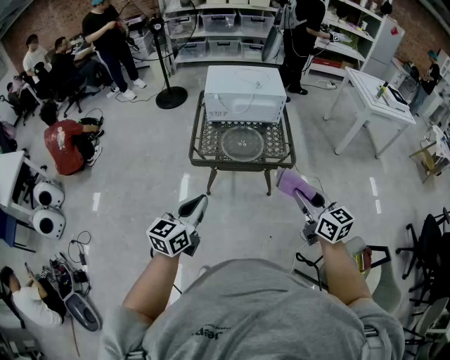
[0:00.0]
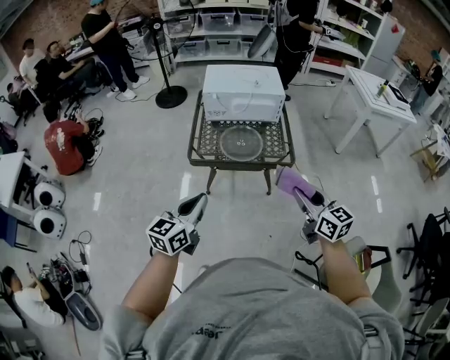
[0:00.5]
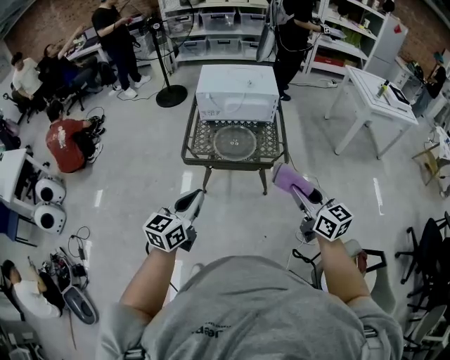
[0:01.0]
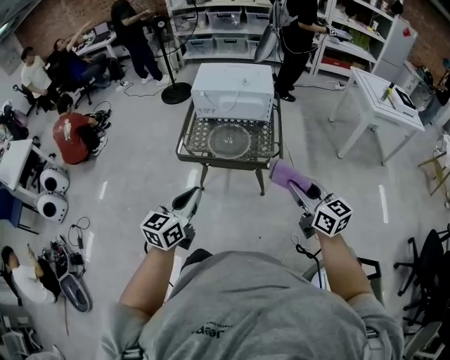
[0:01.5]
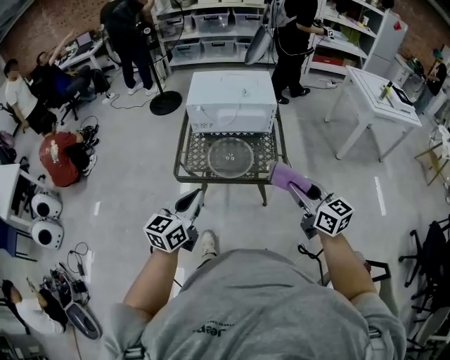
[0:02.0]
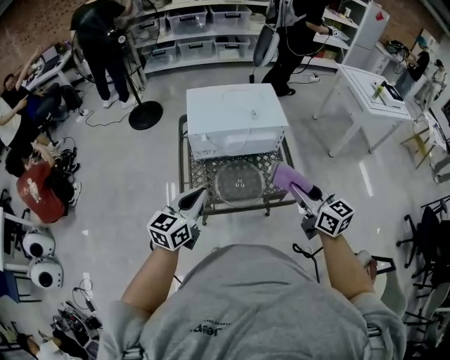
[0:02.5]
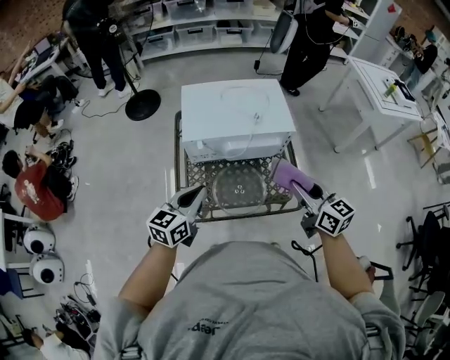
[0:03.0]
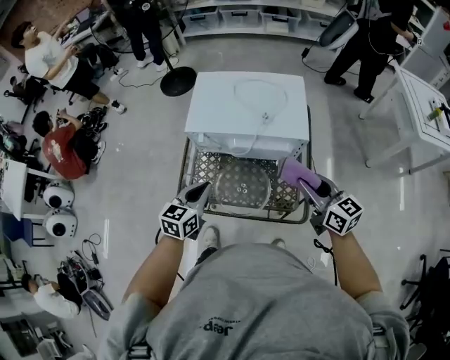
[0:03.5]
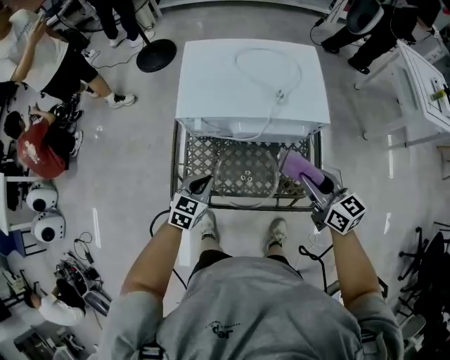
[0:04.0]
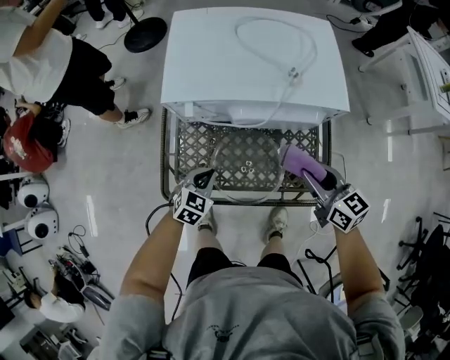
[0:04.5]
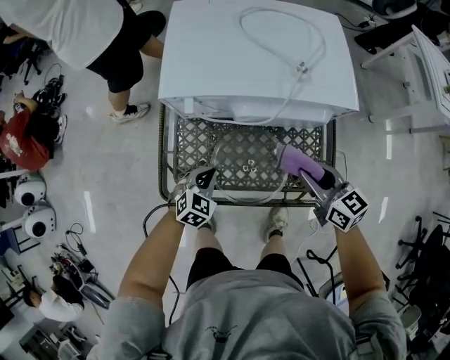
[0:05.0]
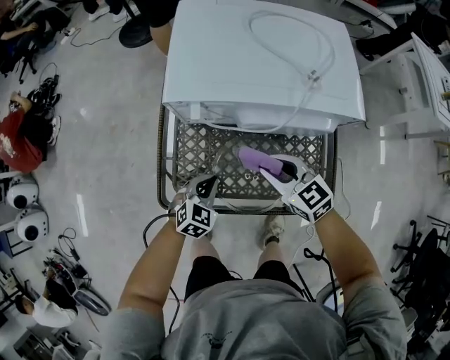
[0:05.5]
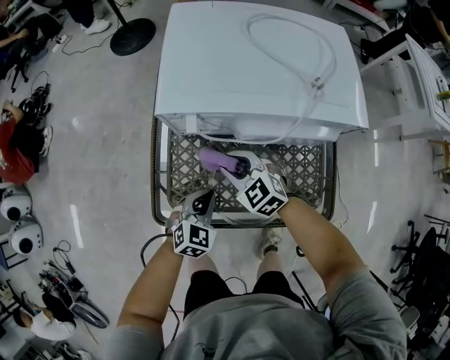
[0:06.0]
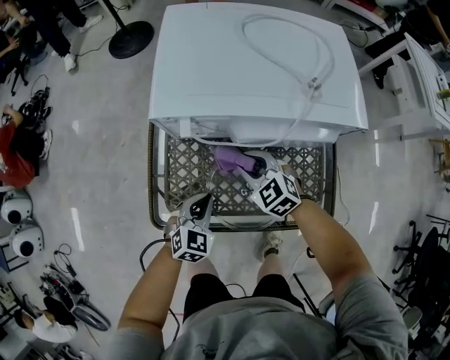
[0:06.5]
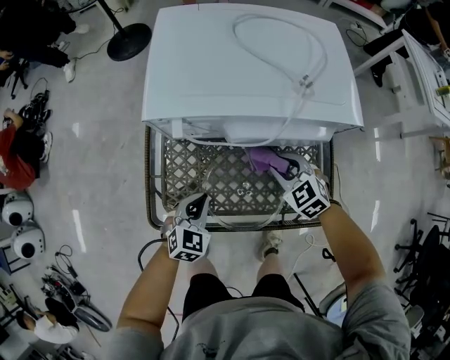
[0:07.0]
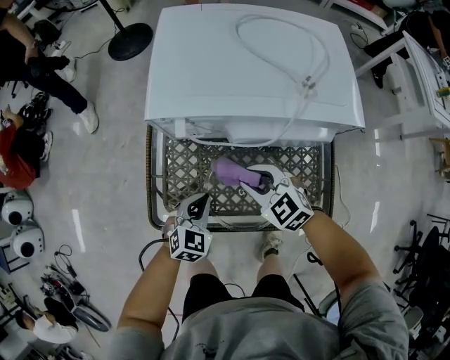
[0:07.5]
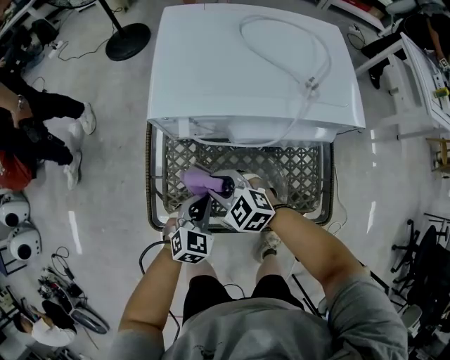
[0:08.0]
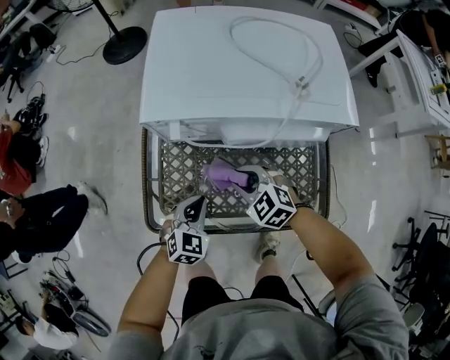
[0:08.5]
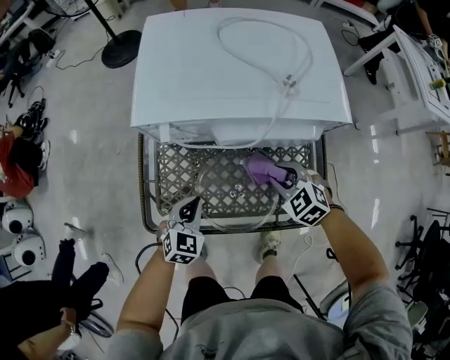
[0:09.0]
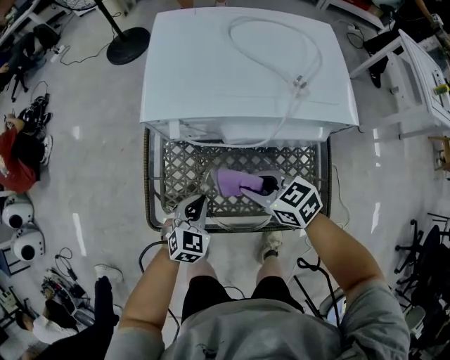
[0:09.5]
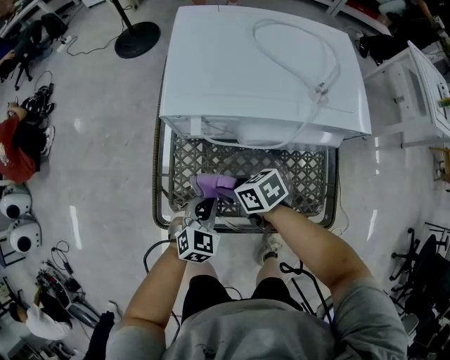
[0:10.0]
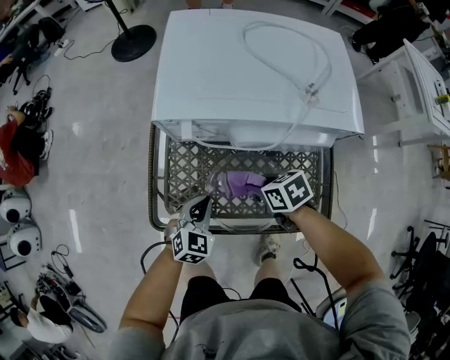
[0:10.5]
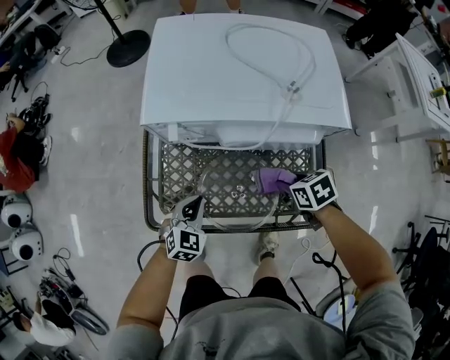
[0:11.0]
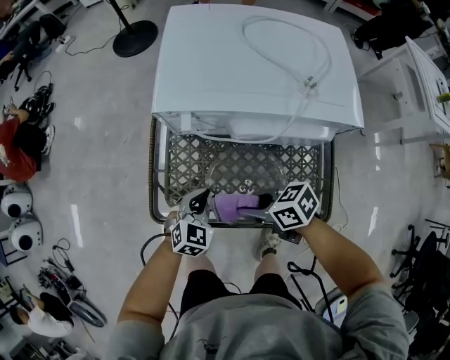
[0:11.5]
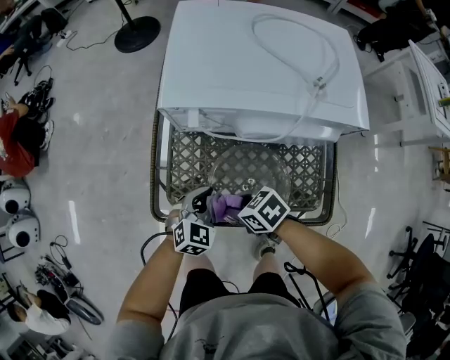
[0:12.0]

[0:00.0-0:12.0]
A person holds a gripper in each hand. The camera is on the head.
0:00.0 to 0:02.0: The two grippers go about 15 cm forward and to the right.
0:02.0 to 0:04.0: Both grippers travel together forward and downward, roughly 40 cm. The left gripper angles its fingers downward, by roughly 30 degrees.
0:04.0 to 0:06.0: The left gripper travels downward by approximately 10 cm. Meanwhile the right gripper moves to the left and downward, approximately 30 cm, and turns by roughly 50 degrees.
0:06.0 to 0:08.0: The right gripper reaches some 15 cm to the right, then returns.
0:08.0 to 0:10.0: The right gripper goes to the right and returns, approximately 20 cm each way, and rolls clockwise, seen from behind, by some 50 degrees.
0:10.0 to 0:12.0: The right gripper travels backward by approximately 10 cm, and reaches roughly 20 cm to the right, then returns.

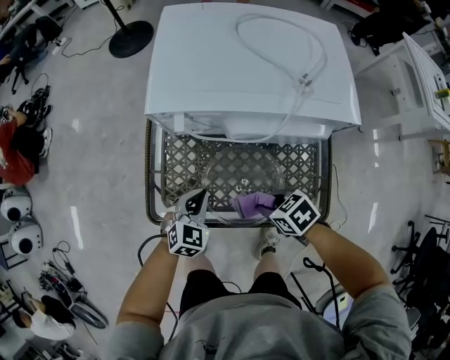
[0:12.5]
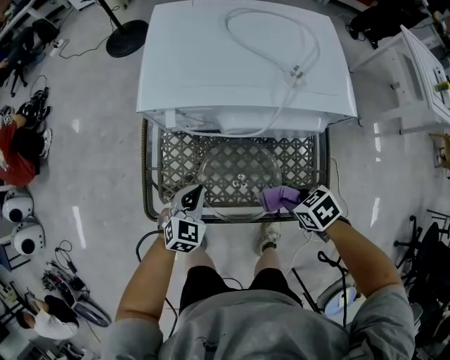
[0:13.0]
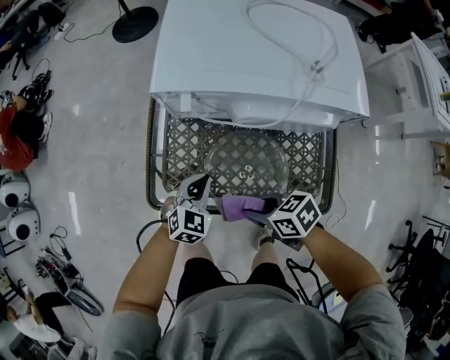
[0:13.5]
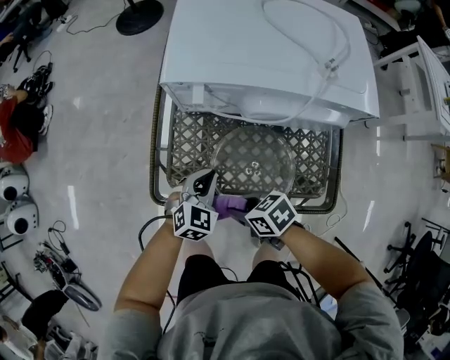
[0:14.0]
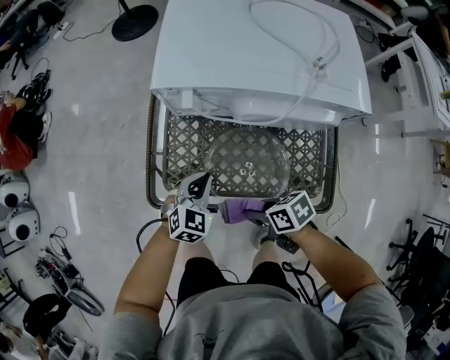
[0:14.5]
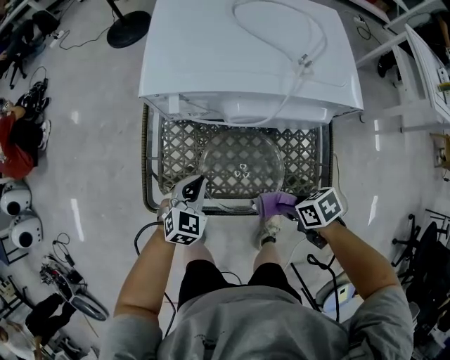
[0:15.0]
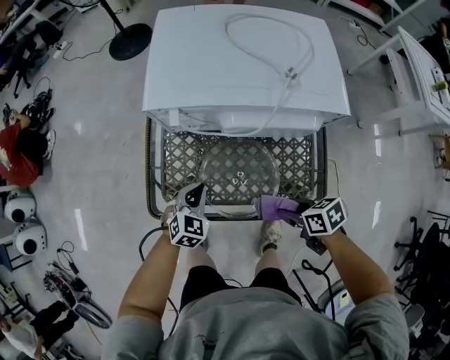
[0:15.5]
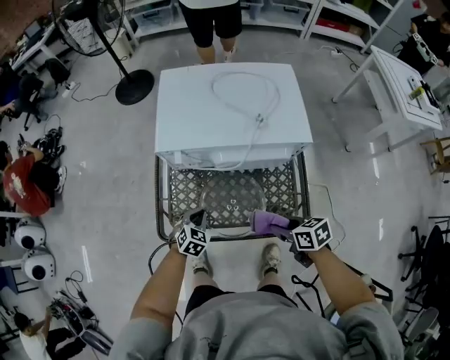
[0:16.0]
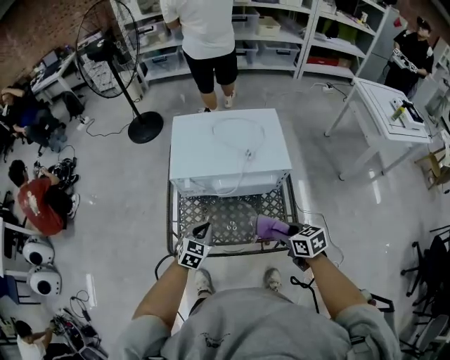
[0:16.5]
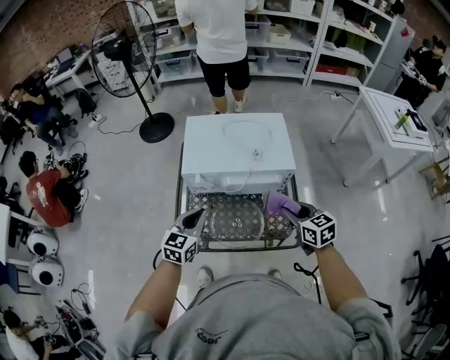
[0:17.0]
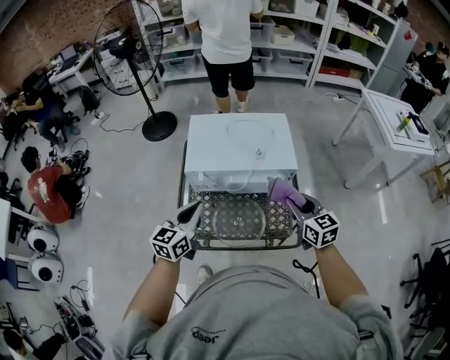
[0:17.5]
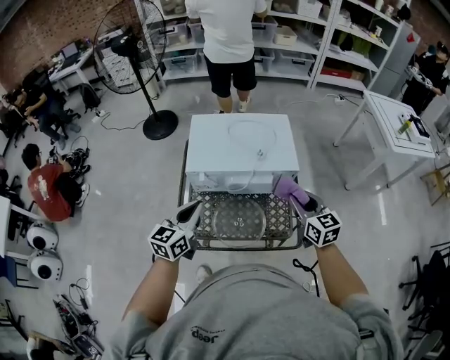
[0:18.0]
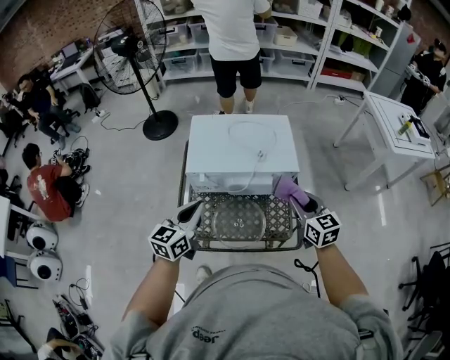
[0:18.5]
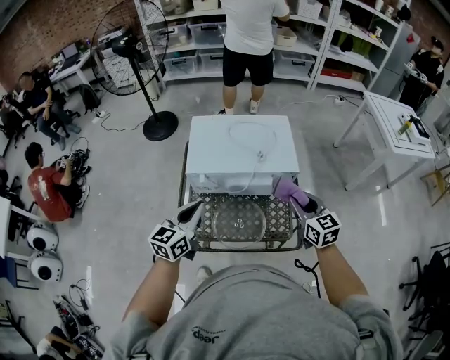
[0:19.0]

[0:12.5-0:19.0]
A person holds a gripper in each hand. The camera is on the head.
0:12.5 to 0:14.5: The right gripper goes left and right, about 20 cm each way, reversing 2 times, and changes its angle by about 20 degrees.
0:14.5 to 0:17.0: The two grippers go some 30 cm upward. The right gripper changes its angle by roughly 50 degrees. Meanwhile the left gripper rotates about 30 degrees.
0:17.0 to 0:19.0: The left gripper moves upward, roughly 5 cm. The right gripper shifts by approximately 5 cm.

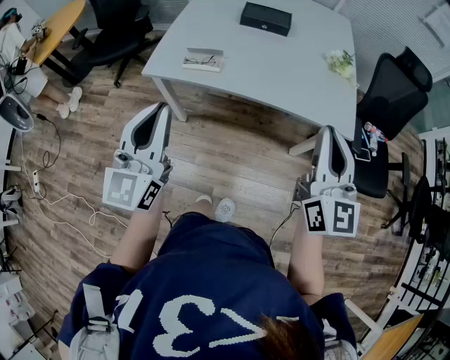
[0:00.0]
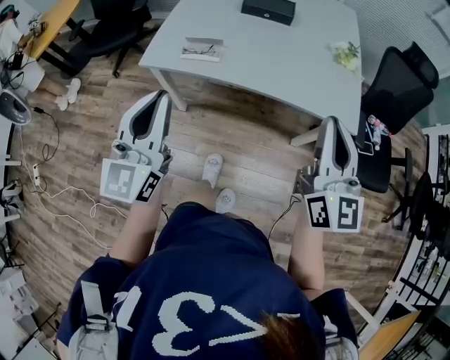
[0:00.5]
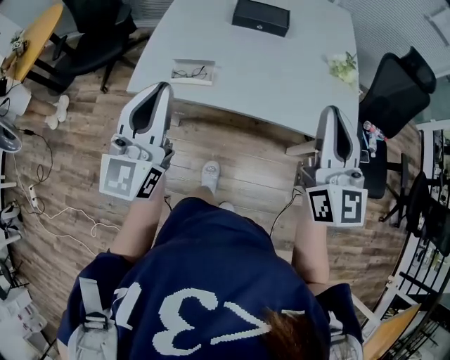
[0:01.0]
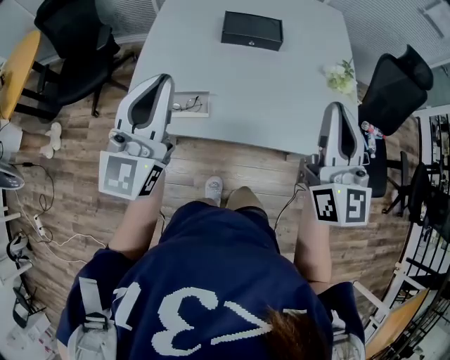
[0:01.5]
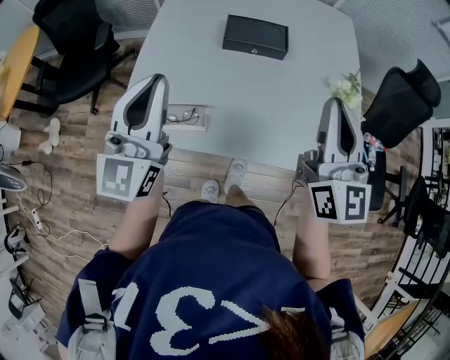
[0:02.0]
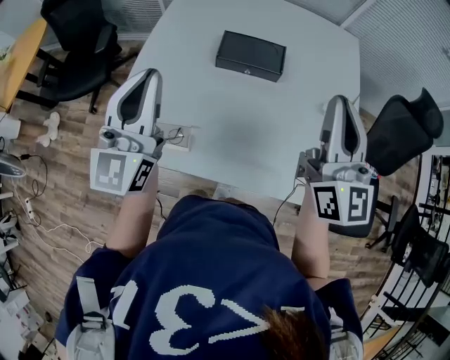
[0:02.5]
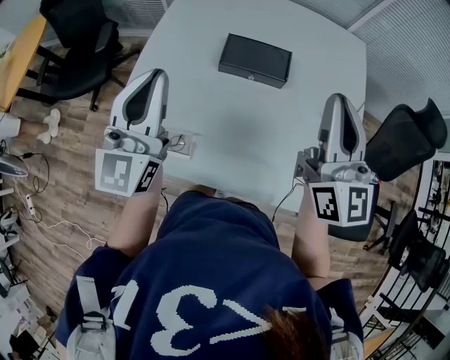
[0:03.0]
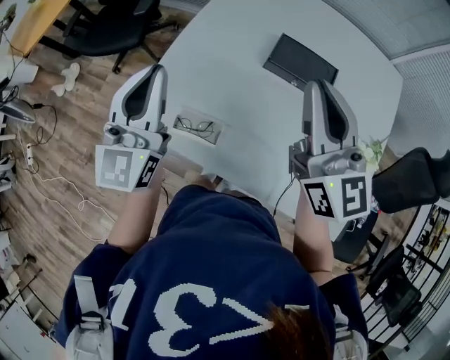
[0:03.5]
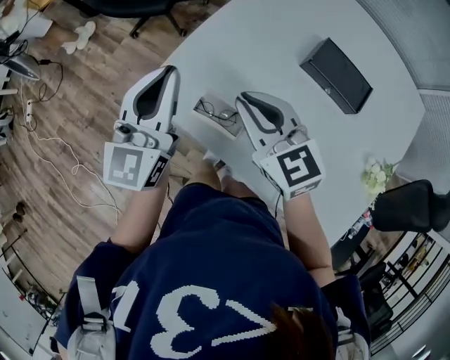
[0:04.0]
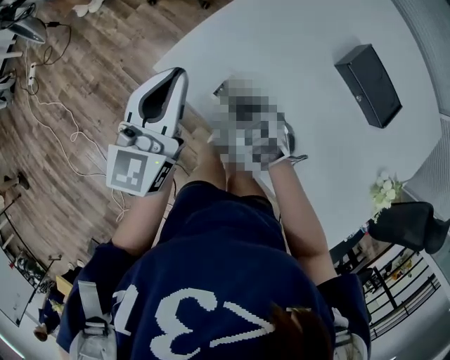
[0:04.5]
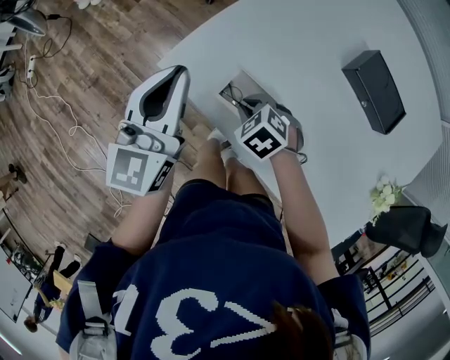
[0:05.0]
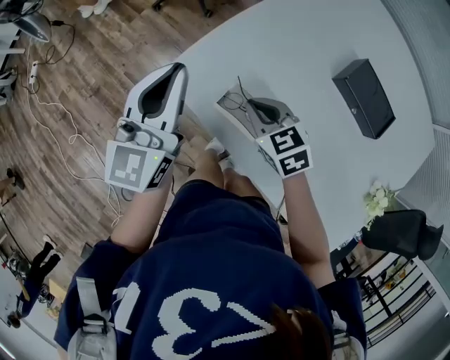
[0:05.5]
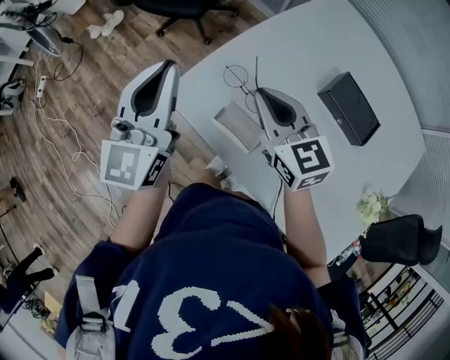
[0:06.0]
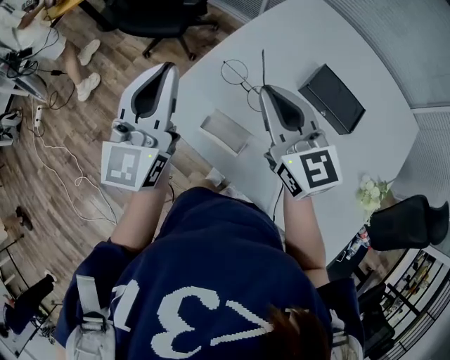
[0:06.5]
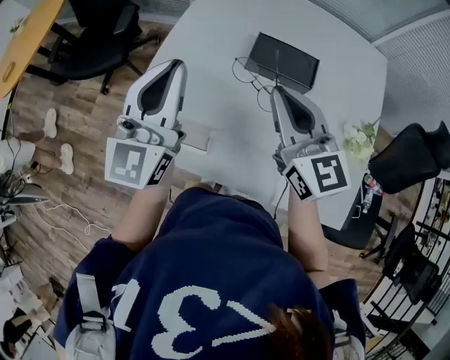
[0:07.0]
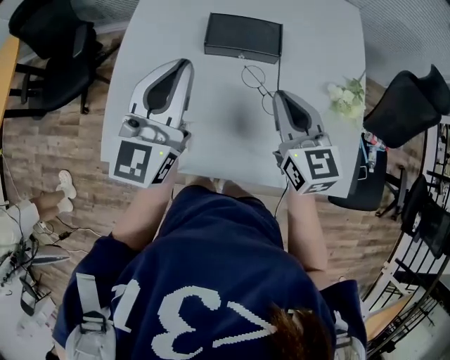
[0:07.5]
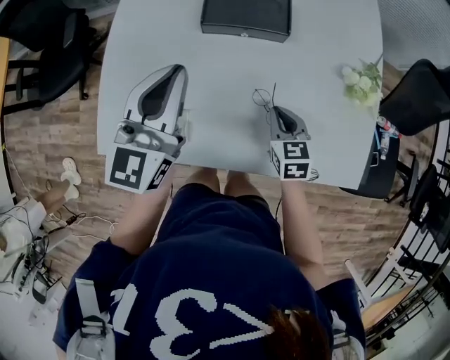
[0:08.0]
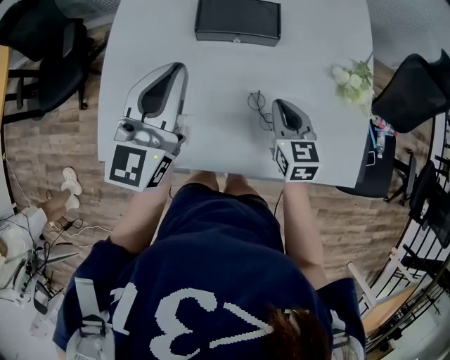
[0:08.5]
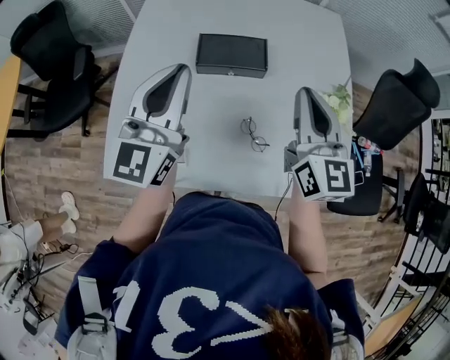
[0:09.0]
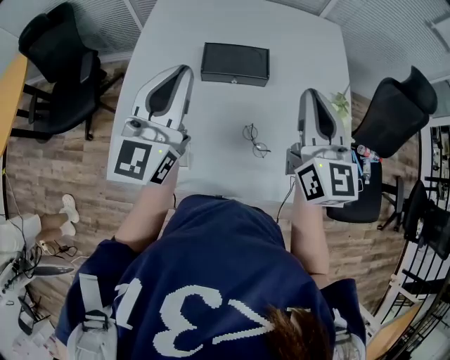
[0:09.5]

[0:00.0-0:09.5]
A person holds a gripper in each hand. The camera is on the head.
0:00.0 to 0:02.0: The grippers both shift forward by about 35 cm.
0:02.0 to 0:04.0: The right gripper changes place by some 35 cm, and points its fingers some 30 degrees further downward. Meanwhile the left gripper ends up some 15 cm from where it was, and changes its angle by about 30 degrees.
0:04.0 to 0:05.5: The right gripper shifts roughly 15 cm downward, and turns by approximately 20 degrees; the left gripper heads to the left, covering about 5 cm.
0:05.5 to 0:07.5: The left gripper changes place by about 30 cm, and turns by approximately 40 degrees, while the right gripper changes place by approximately 35 cm, and changes its angle by roughly 60 degrees.
0:07.5 to 0:09.5: The right gripper goes some 15 cm upward and to the right, and turns by some 20 degrees.
